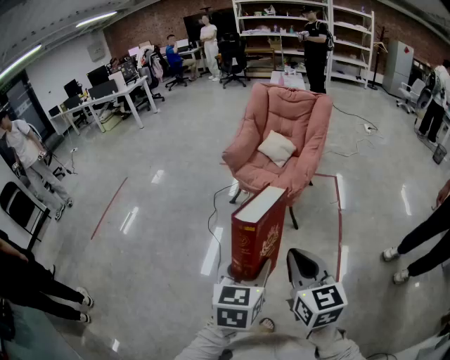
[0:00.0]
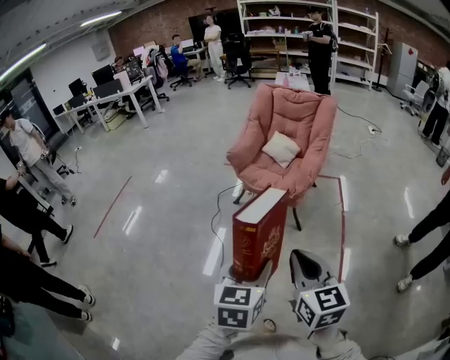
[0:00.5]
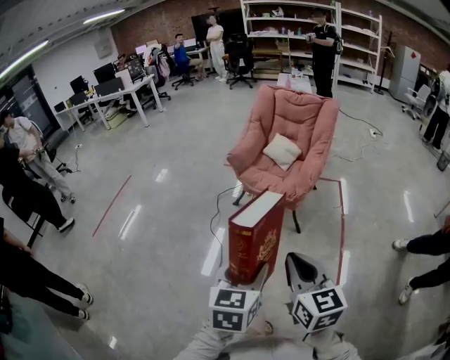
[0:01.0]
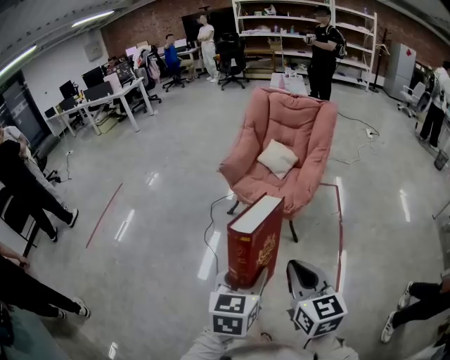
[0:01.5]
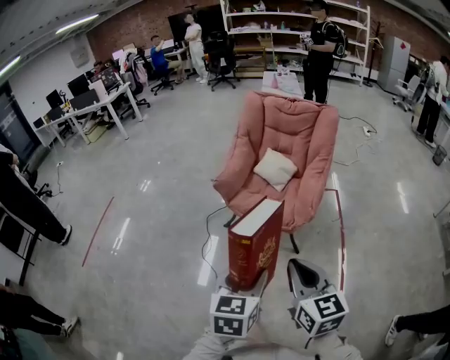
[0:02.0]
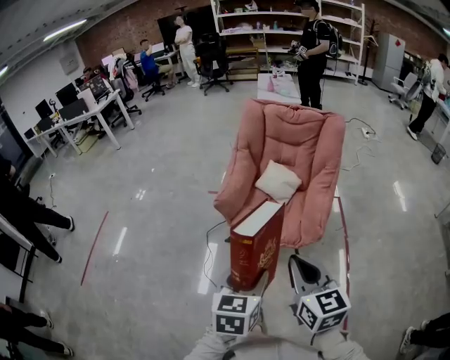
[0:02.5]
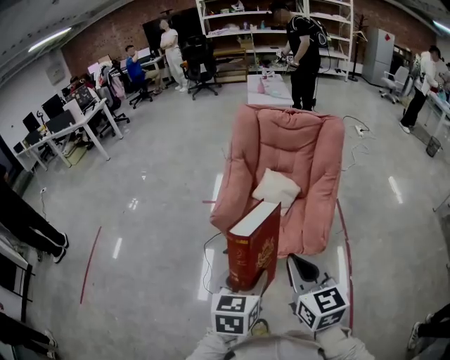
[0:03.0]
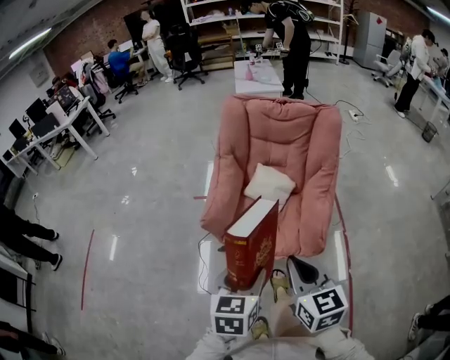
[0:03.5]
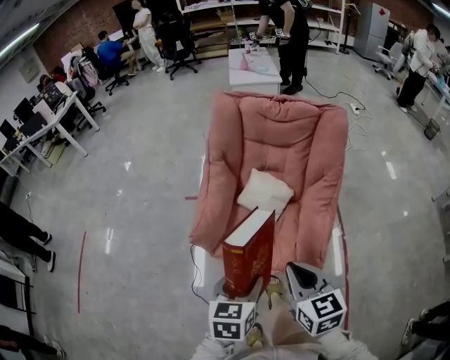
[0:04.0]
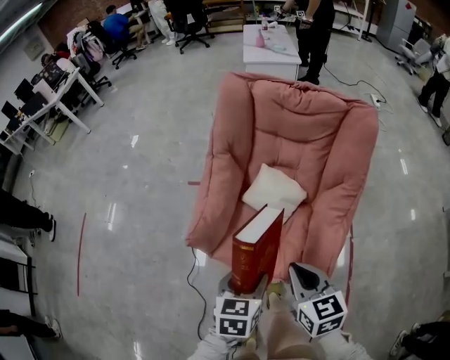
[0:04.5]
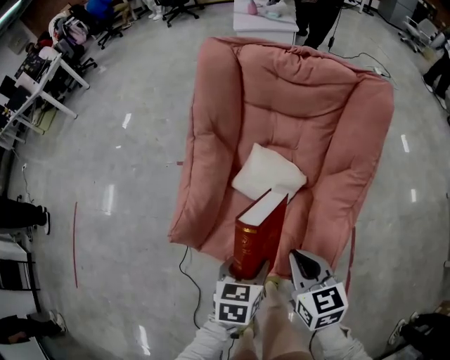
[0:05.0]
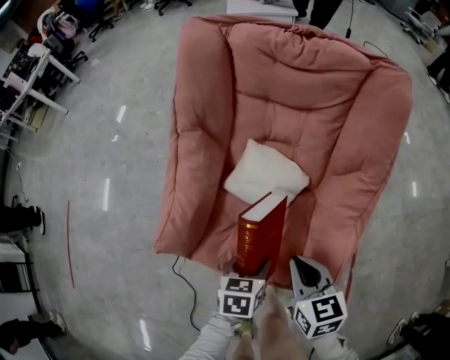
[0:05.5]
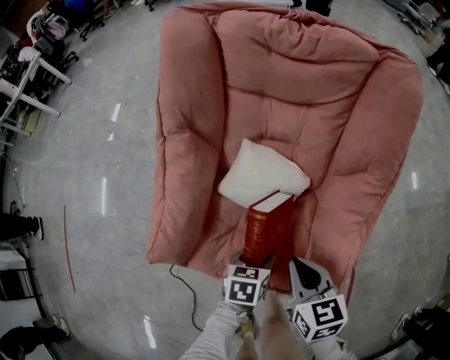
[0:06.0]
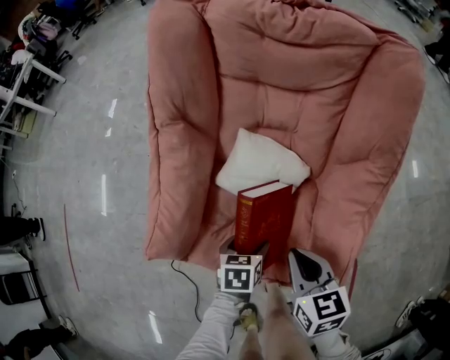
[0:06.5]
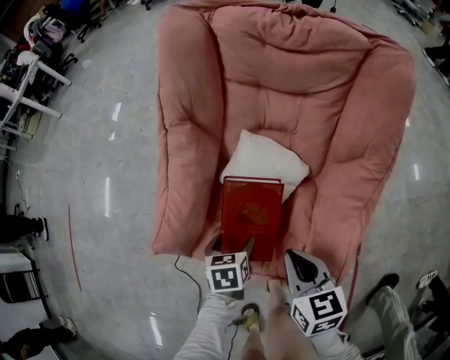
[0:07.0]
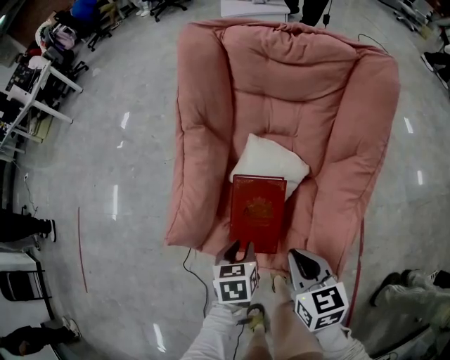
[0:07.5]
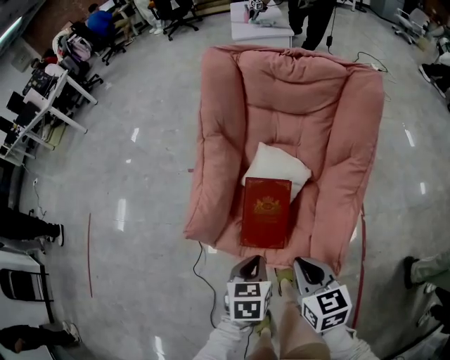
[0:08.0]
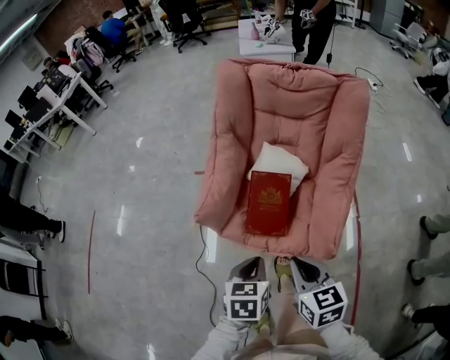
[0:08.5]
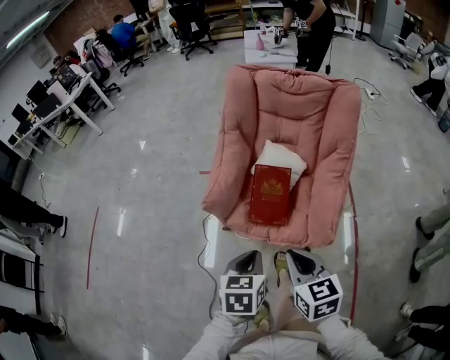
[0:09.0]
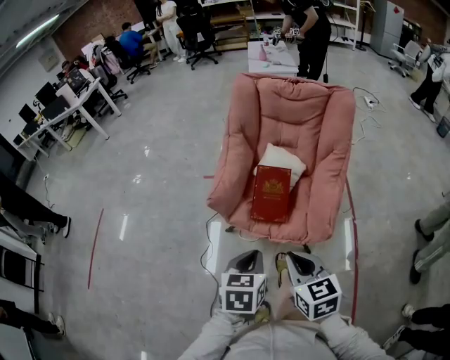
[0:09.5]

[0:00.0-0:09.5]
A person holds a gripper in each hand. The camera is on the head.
0:00.0 to 0:02.0: The grippers both shift forward by some 20 cm.
0:02.0 to 0:04.0: Both grippers travel together forward, some 35 cm.
0:04.0 to 0:05.5: The two grippers go approximately 25 cm downward and forward. The left gripper changes its angle by approximately 20 degrees.
0:05.5 to 0:07.5: The left gripper is displaced to the left by roughly 5 cm, reaches some 10 cm downward, then returns, and opens and closes again.
0:07.5 to 0:09.5: The grippers both shift backward and upward by about 30 cm.

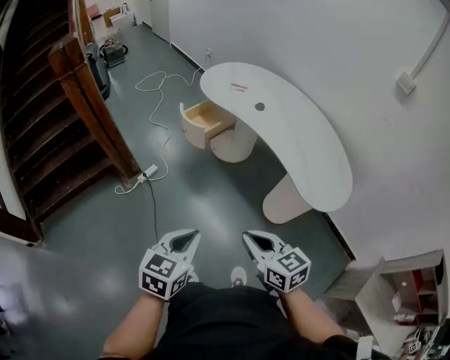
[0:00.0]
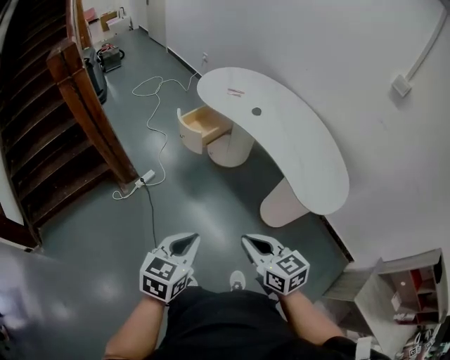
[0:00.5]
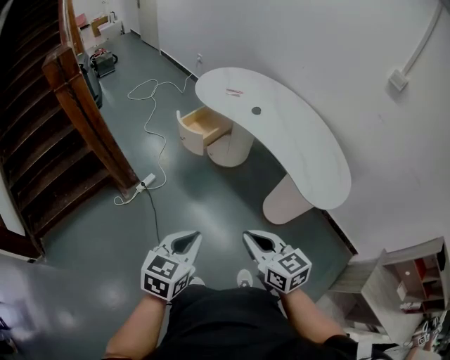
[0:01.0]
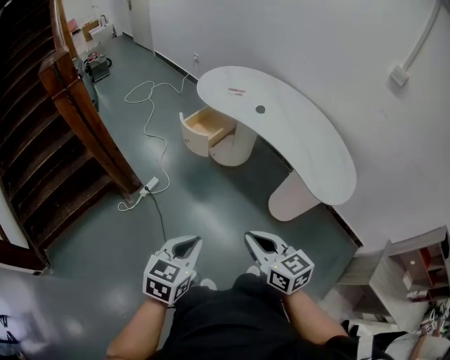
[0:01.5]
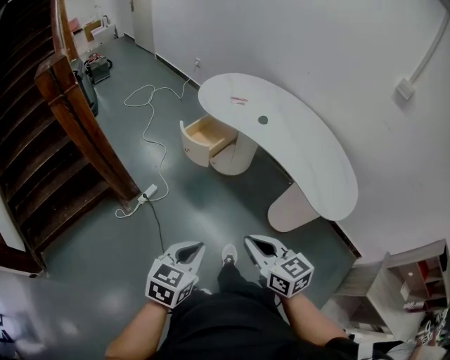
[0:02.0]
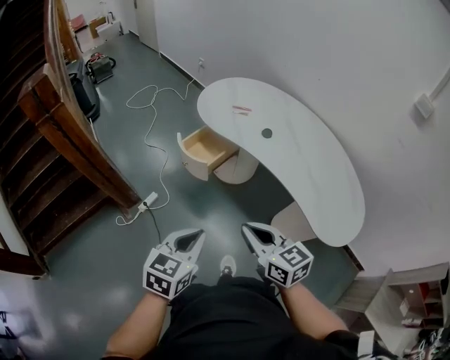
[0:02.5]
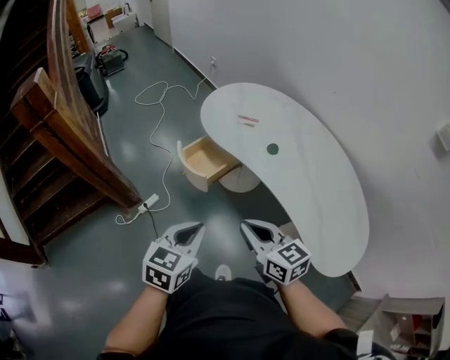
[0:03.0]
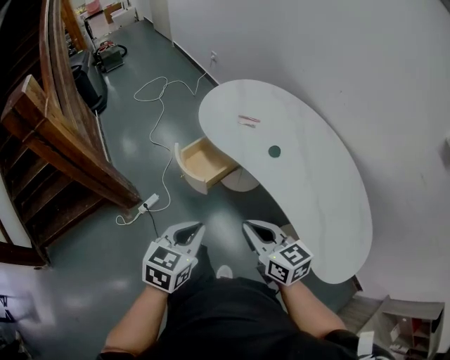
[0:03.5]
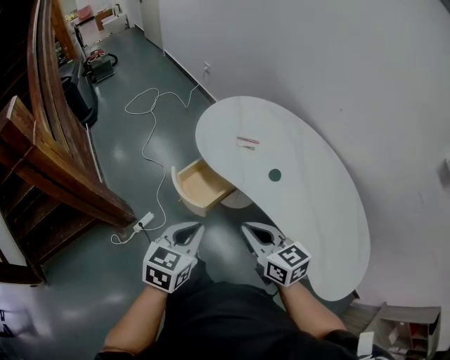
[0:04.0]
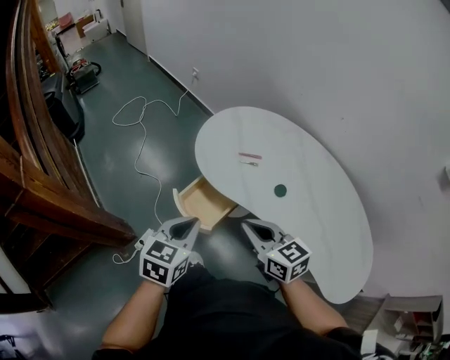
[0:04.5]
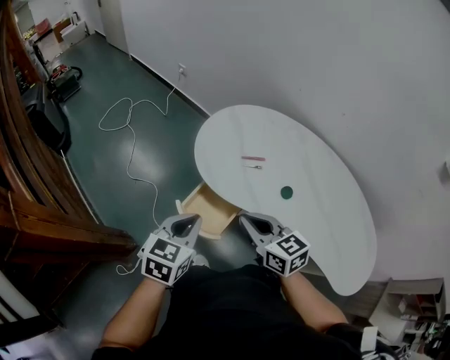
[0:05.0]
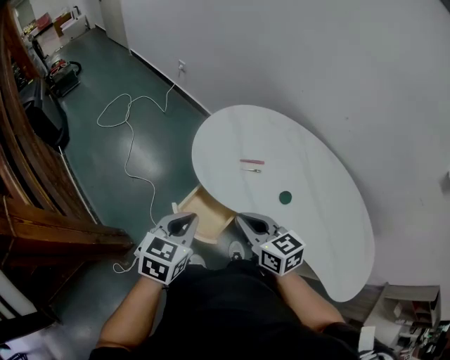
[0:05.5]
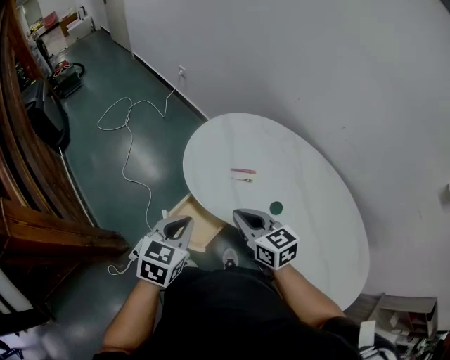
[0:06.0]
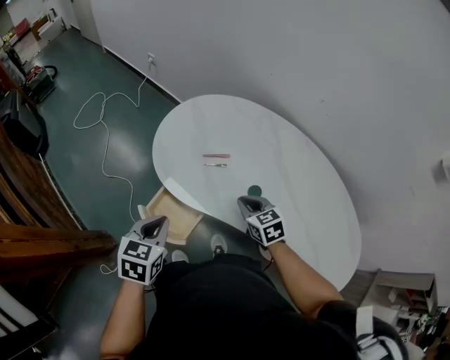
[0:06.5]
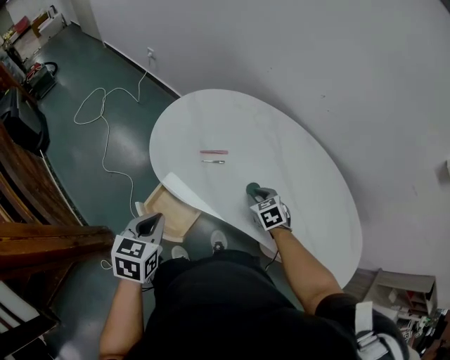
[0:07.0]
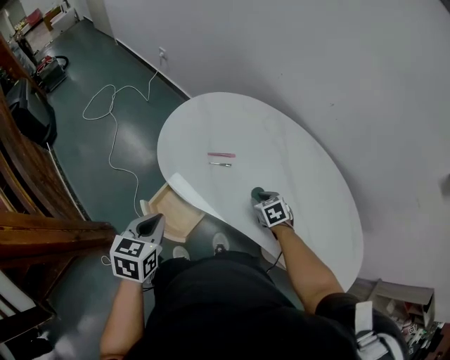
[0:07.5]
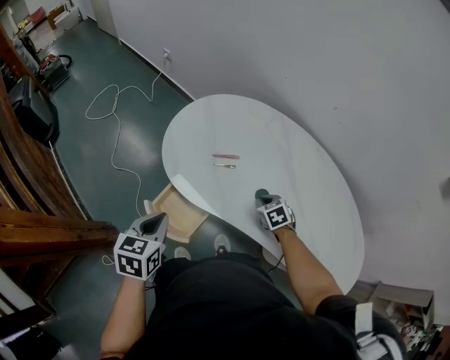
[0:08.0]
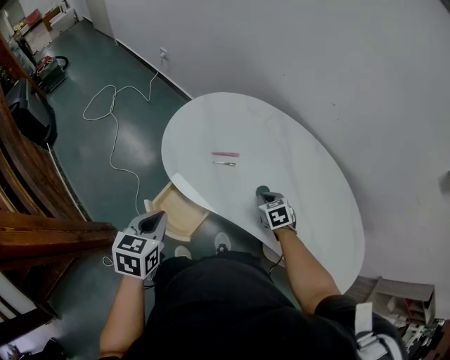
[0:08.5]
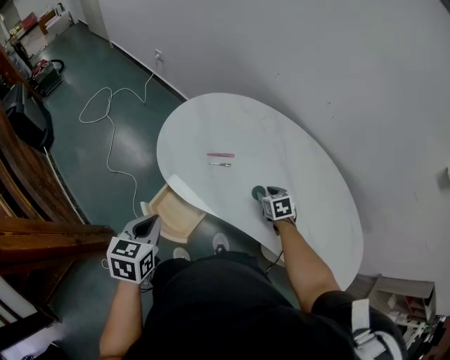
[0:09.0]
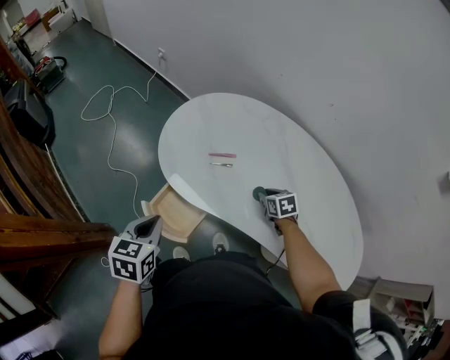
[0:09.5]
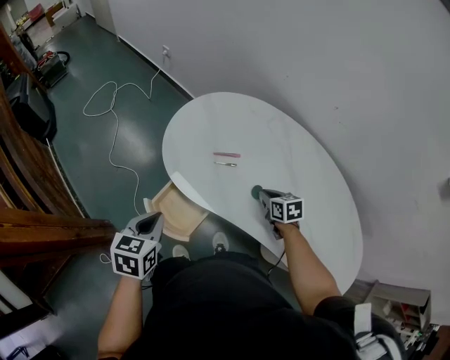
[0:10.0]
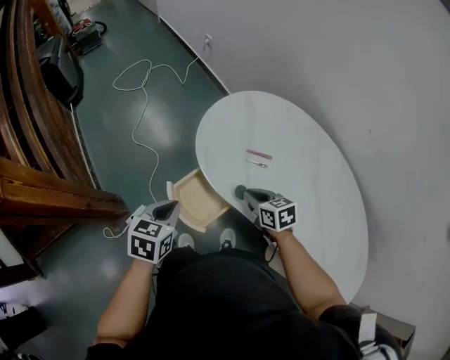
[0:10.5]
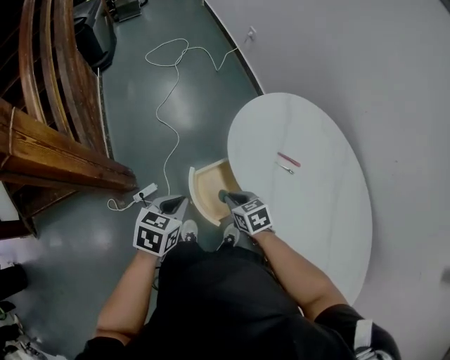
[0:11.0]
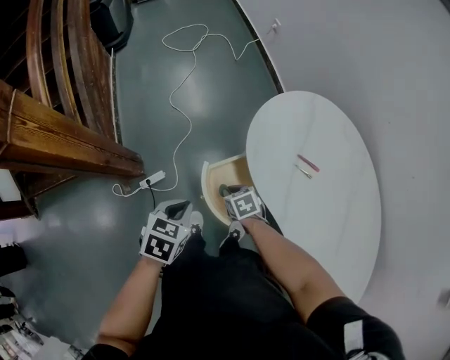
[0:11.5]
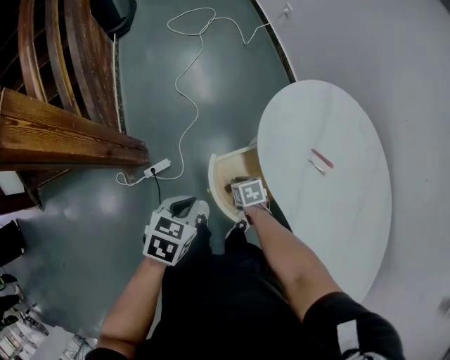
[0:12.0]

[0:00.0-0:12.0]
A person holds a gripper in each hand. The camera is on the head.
0:00.0 to 0:02.0: Both grippers move to the left and forward, about 10 cm.
0:02.0 to 0:04.0: The two grippers travel together, forward, approximately 40 cm.
0:04.0 to 0:06.0: Both grippers move forward, approximately 25 cm.
0:06.0 to 0:08.0: The right gripper shifts about 30 cm downward and to the right, and points its fingers some 40 degrees further downward.
0:08.0 to 0:10.0: The right gripper turns by roughly 20 degrees, and opens, then closes again.
0:10.0 to 0:12.0: The left gripper ends up some 15 cm from where it was, and turns by roughly 20 degrees; the right gripper shifts by approximately 40 cm, and rotates approximately 40 degrees.

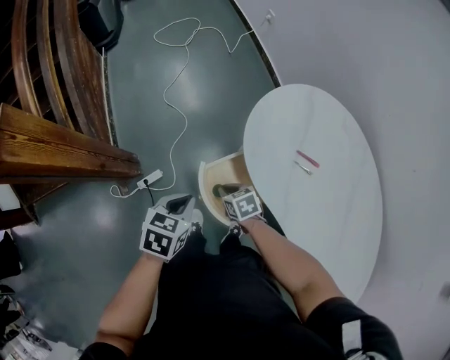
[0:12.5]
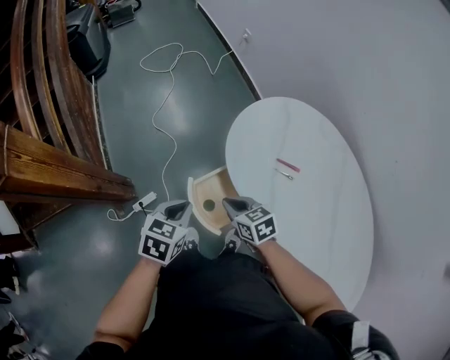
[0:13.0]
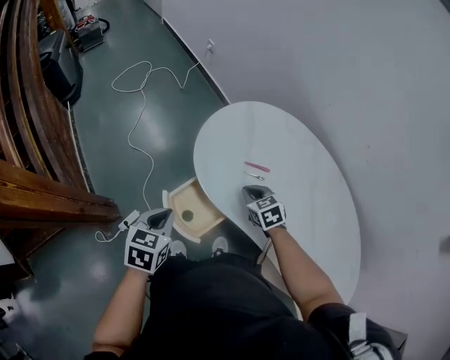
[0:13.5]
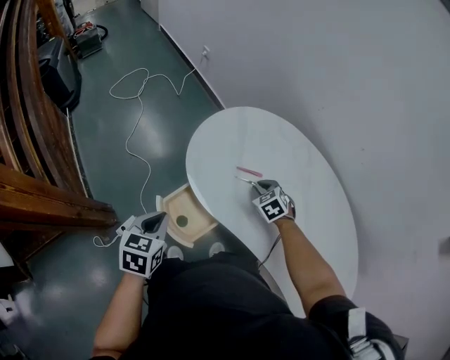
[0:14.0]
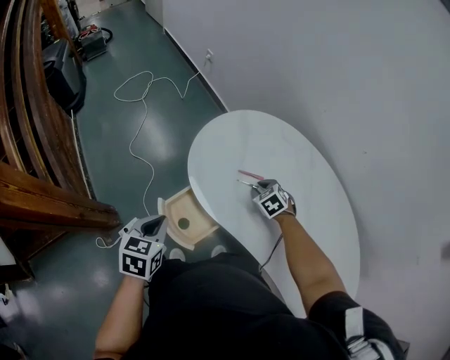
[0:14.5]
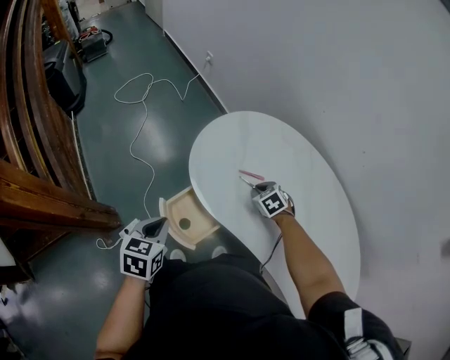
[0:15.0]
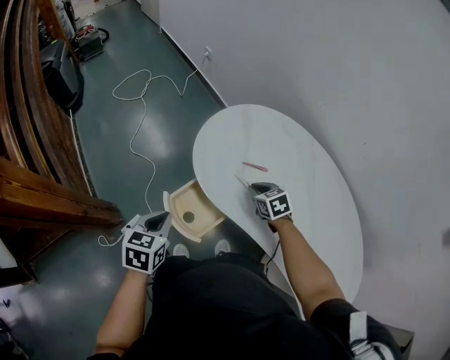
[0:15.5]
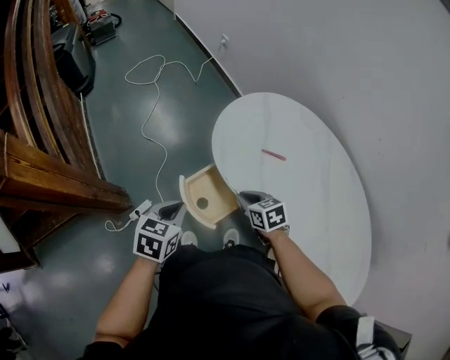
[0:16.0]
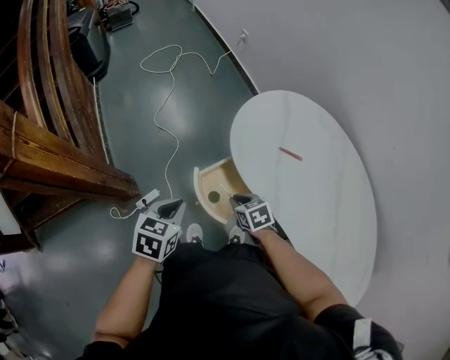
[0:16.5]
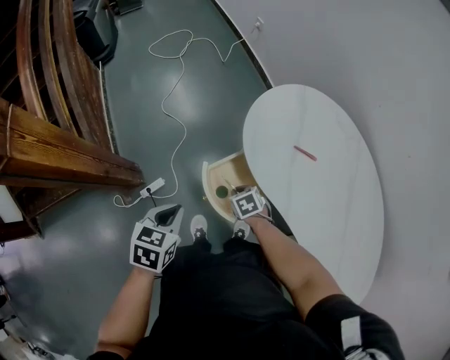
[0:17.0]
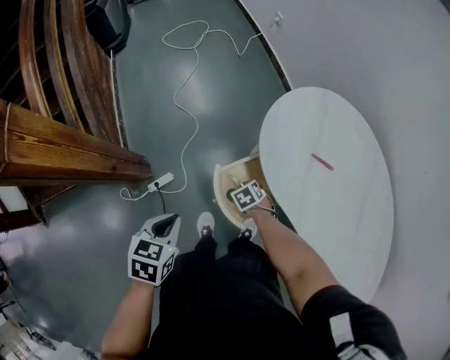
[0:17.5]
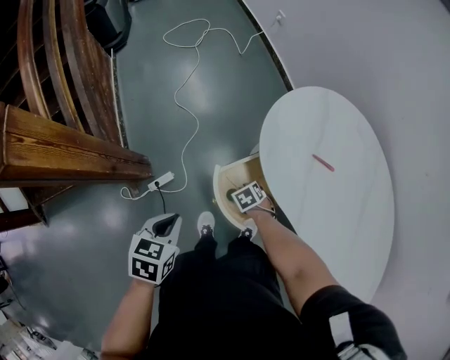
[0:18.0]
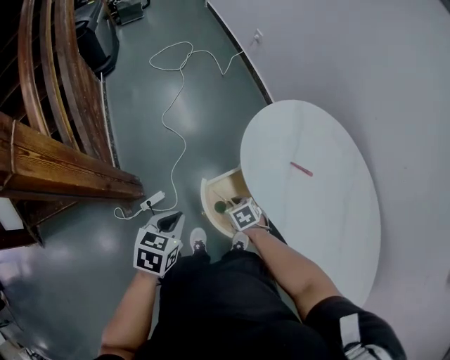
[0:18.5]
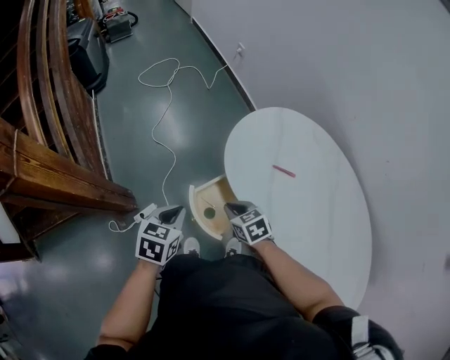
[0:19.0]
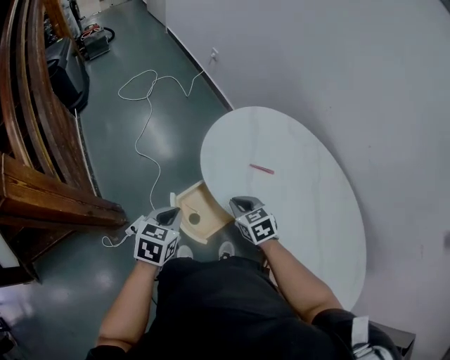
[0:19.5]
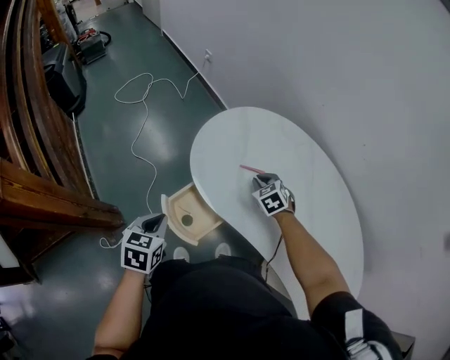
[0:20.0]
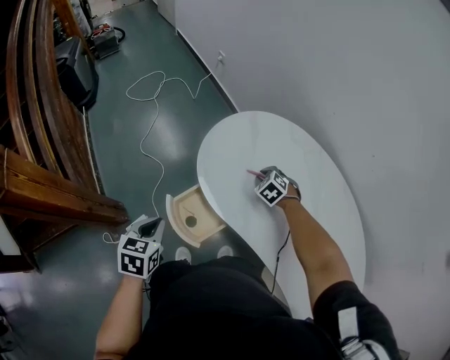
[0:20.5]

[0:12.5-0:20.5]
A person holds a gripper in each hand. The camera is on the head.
0:12.5 to 0:14.5: The right gripper travels to the right by some 30 cm, and changes its angle by some 30 degrees; the left gripper travels upward and to the right by some 10 cm.
0:14.5 to 0:16.5: The left gripper travels to the left and backward by roughly 10 cm; the right gripper heads to the left and backward, covering about 25 cm, and rotates some 30 degrees.
0:16.5 to 0:18.5: The right gripper goes approximately 10 cm downward.
0:18.5 to 0:20.5: The left gripper heads to the right, covering approximately 10 cm, while the right gripper moves to the right, forward and upward, roughly 30 cm, and rotates roughly 30 degrees.
